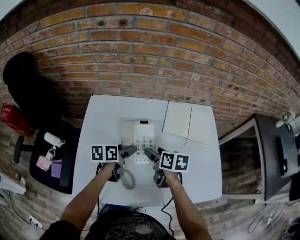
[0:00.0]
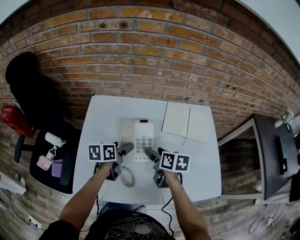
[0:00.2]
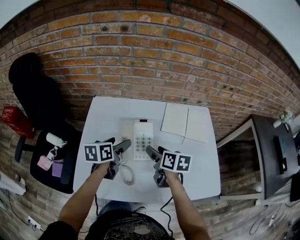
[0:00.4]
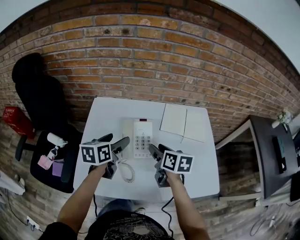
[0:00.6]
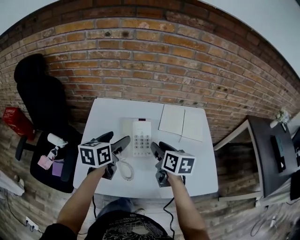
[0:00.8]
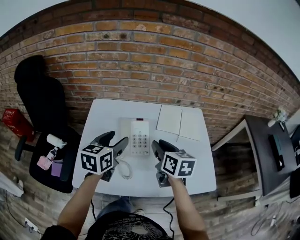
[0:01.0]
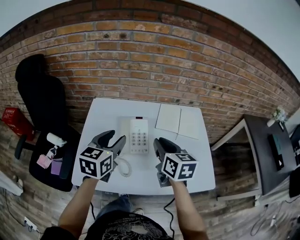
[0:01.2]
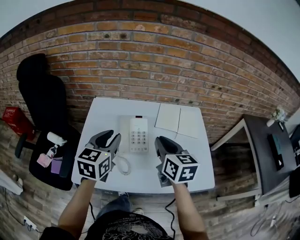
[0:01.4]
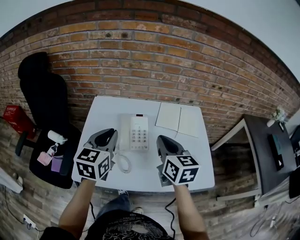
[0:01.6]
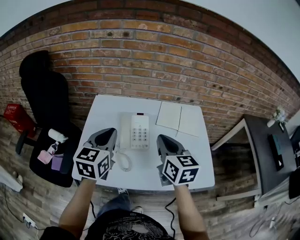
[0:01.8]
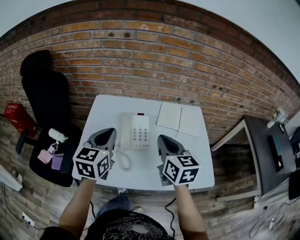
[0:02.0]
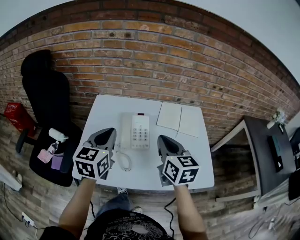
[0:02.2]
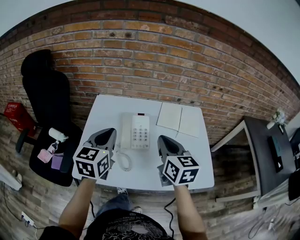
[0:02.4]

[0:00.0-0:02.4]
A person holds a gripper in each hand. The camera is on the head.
0:00.0 to 0:01.2: The grippers both shift upward and backward by roughly 20 cm. The right gripper swivels some 30 degrees, and closes; the left gripper turns by some 40 degrees, and closes.
0:01.2 to 0:02.4: The left gripper closes its fingers.

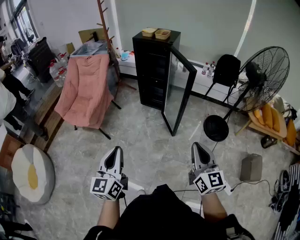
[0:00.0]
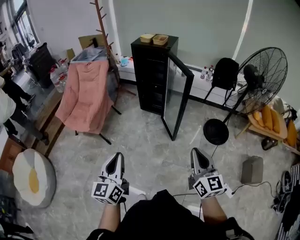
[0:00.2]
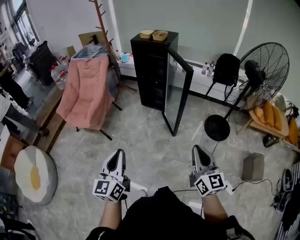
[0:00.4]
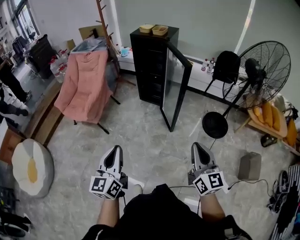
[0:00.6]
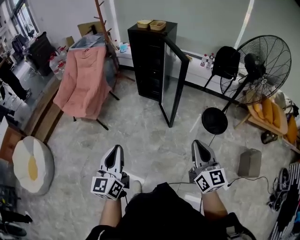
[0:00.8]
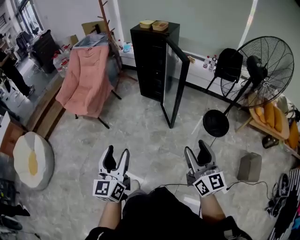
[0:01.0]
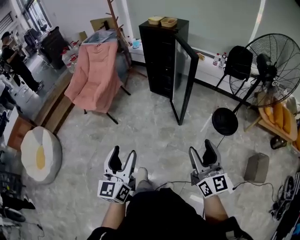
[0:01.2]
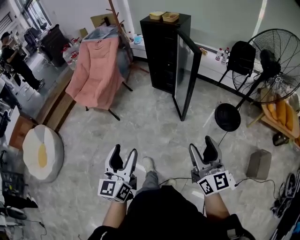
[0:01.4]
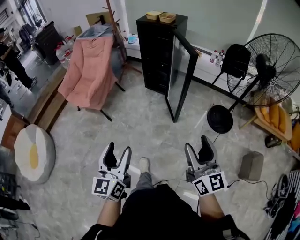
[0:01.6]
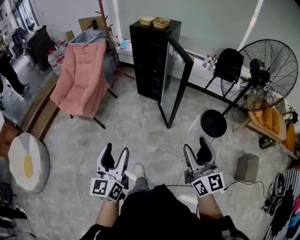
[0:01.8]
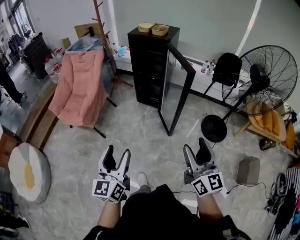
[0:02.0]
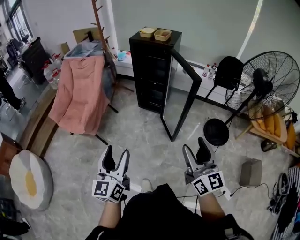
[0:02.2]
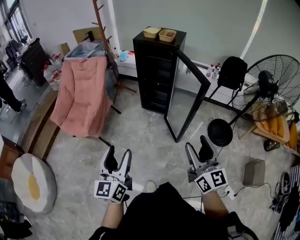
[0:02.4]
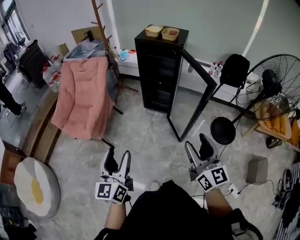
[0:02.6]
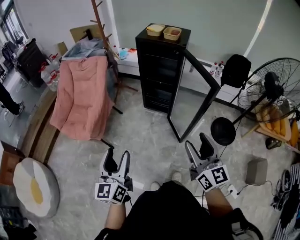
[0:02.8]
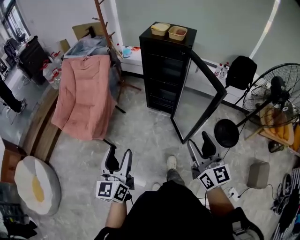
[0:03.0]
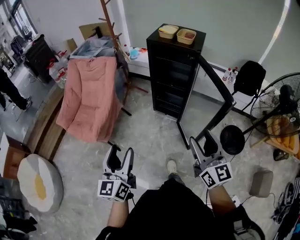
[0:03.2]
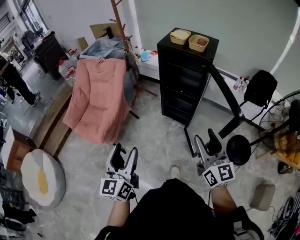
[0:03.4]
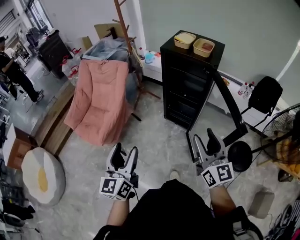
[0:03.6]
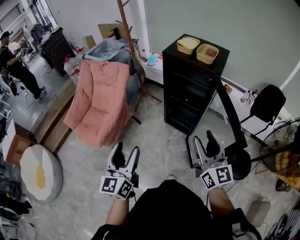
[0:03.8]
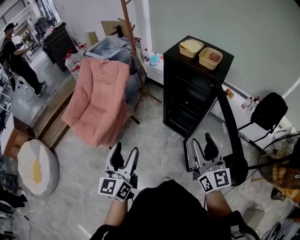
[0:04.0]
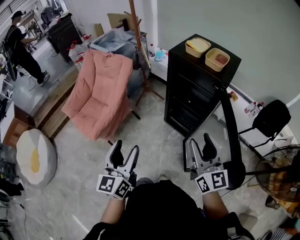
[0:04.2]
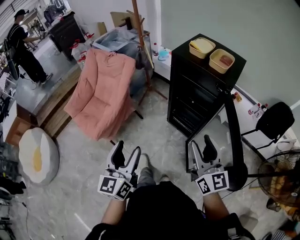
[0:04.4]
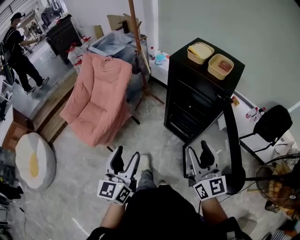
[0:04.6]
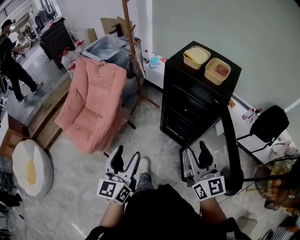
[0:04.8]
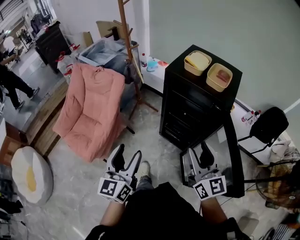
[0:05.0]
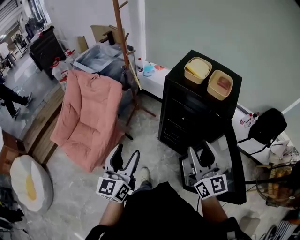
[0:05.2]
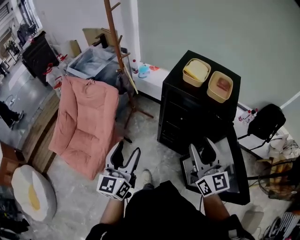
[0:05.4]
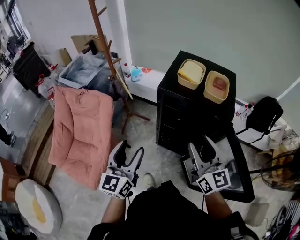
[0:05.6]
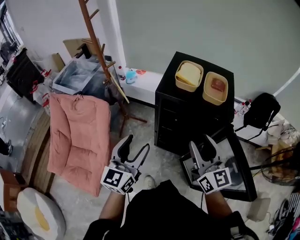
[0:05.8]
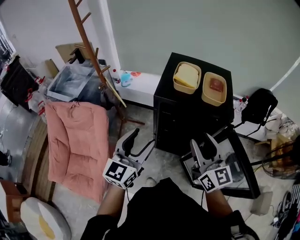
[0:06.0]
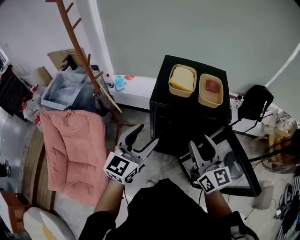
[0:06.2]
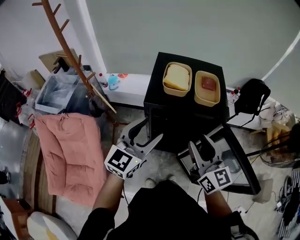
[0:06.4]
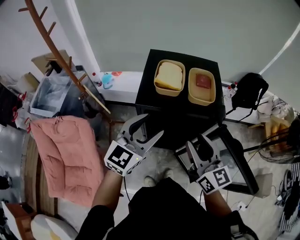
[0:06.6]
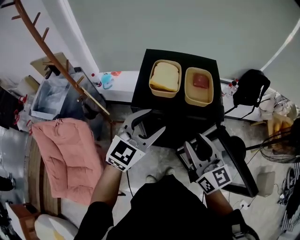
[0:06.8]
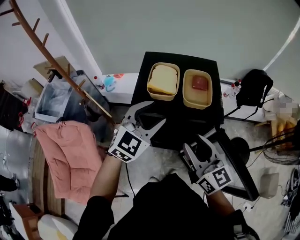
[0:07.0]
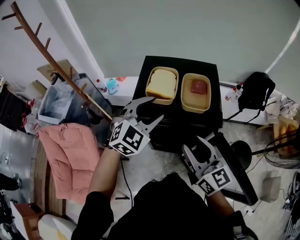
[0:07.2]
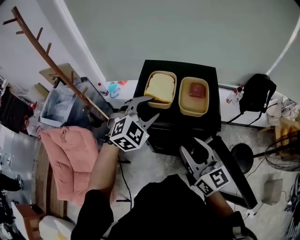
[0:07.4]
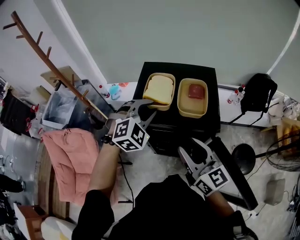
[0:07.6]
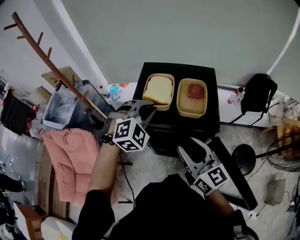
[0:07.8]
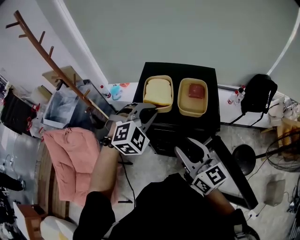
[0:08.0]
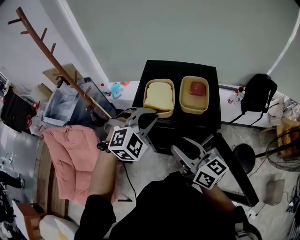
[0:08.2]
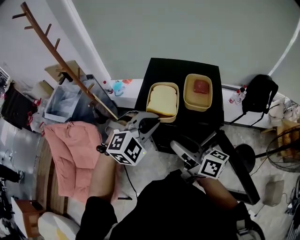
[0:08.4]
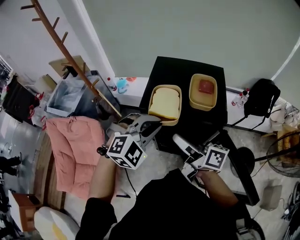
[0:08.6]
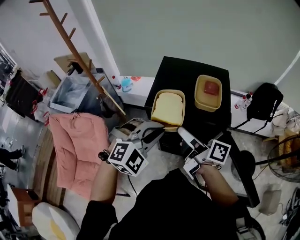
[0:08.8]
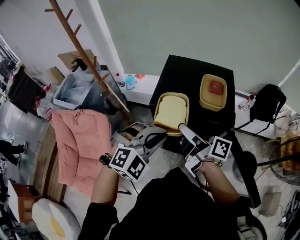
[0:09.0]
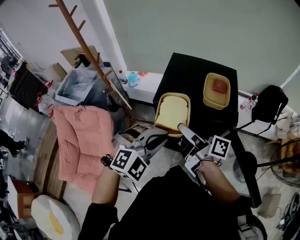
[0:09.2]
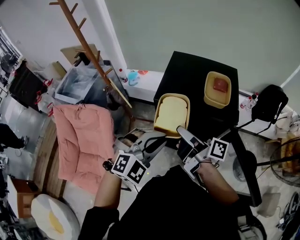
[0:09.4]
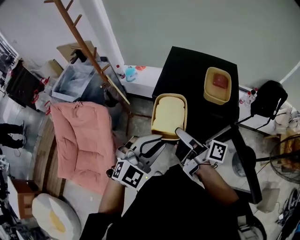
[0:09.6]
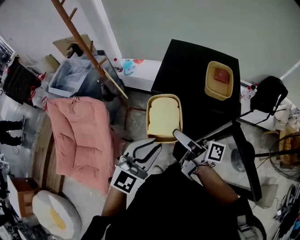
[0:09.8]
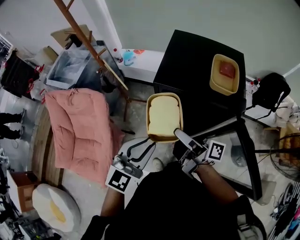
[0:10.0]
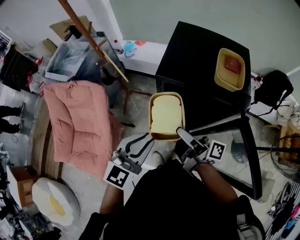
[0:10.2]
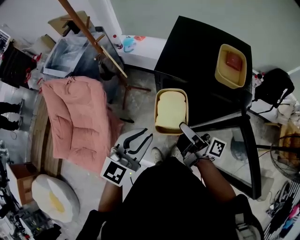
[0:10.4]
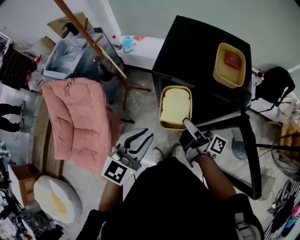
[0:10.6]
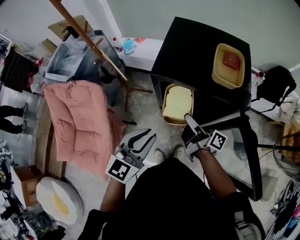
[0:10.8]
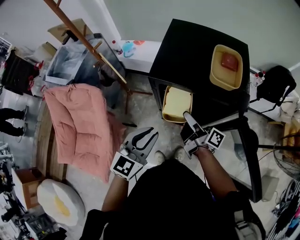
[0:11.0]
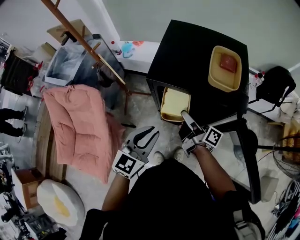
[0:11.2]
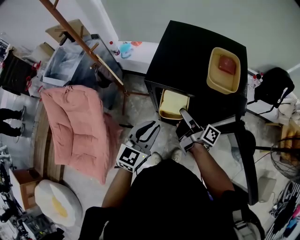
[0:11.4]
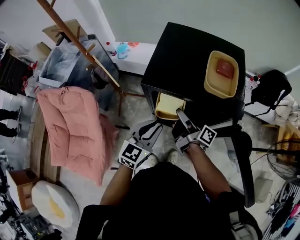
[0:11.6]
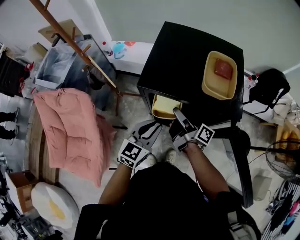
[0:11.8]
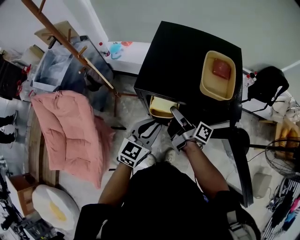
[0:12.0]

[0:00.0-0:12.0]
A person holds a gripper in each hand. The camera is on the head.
0:00.0 to 0:01.6: The right gripper ends up roughly 5 cm from where it was, and opens; the left gripper travels backward and to the right by roughly 10 cm, and opens up.
0:01.6 to 0:03.0: Both grippers move forward and to the left, approximately 30 cm.
0:03.0 to 0:04.4: The right gripper is displaced forward by some 30 cm, while the left gripper is displaced forward and to the right by roughly 20 cm.
0:04.4 to 0:06.0: The right gripper moves about 25 cm, while the left gripper ends up roughly 35 cm from where it was, and rotates roughly 40 degrees.
0:06.0 to 0:07.6: The right gripper moves forward, roughly 5 cm. Meanwhile the left gripper heads forward and to the right, covering some 25 cm, rotates around the line of its fingers by roughly 60 degrees, clockwise from behind, and closes up.
0:07.6 to 0:09.0: The left gripper heads backward, covering about 15 cm, while the right gripper moves to the left, roughly 10 cm, twists approximately 50 degrees clockwise, seen from behind, and opens its fingers.
0:09.0 to 0:10.4: The right gripper travels downward and backward by roughly 10 cm. Meanwhile the left gripper is displaced to the left, backward and downward by roughly 10 cm, and rolls counterclockwise, seen from behind, by approximately 50 degrees.
0:10.4 to 0:12.0: The right gripper goes some 15 cm forward and downward. The left gripper moves downward, forward and to the right, roughly 15 cm.

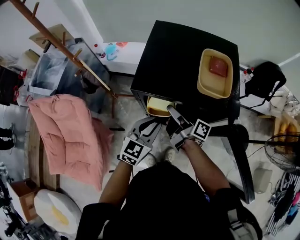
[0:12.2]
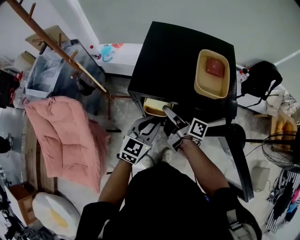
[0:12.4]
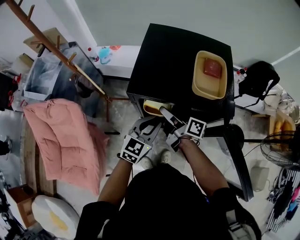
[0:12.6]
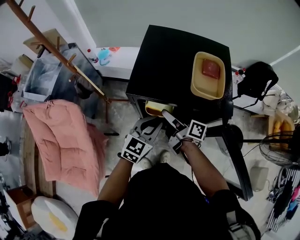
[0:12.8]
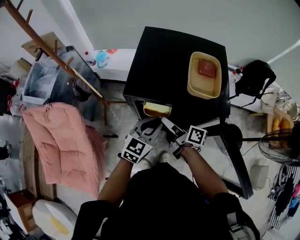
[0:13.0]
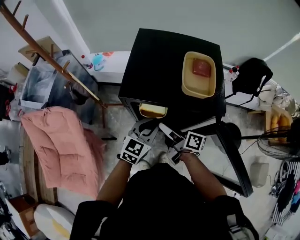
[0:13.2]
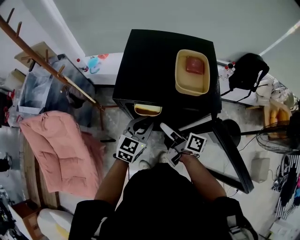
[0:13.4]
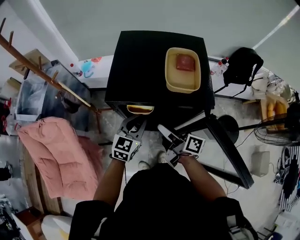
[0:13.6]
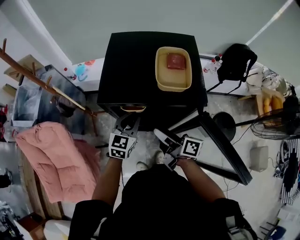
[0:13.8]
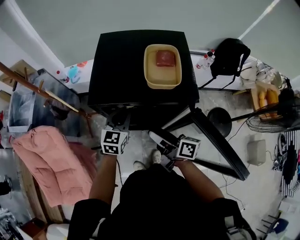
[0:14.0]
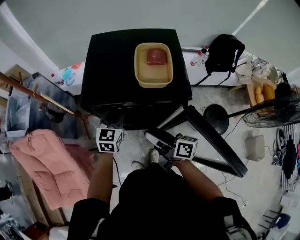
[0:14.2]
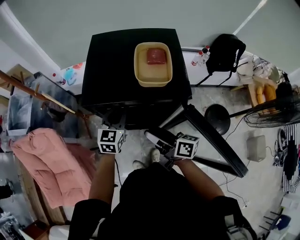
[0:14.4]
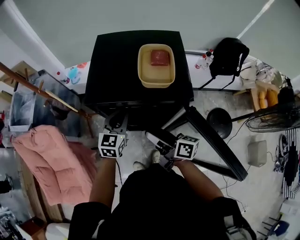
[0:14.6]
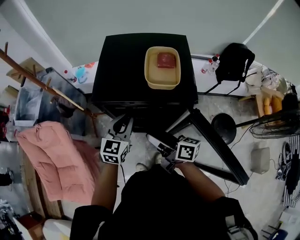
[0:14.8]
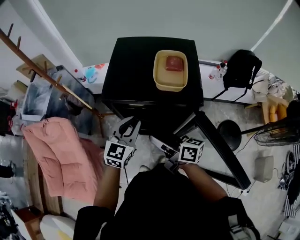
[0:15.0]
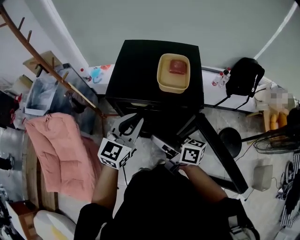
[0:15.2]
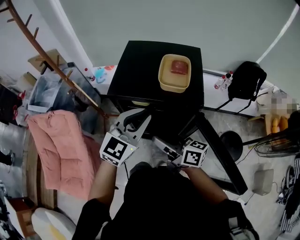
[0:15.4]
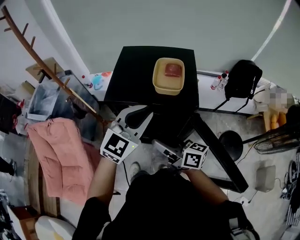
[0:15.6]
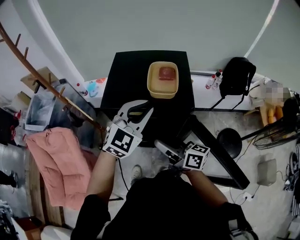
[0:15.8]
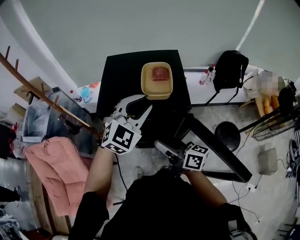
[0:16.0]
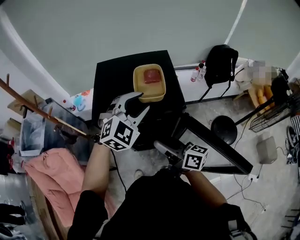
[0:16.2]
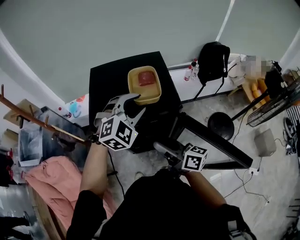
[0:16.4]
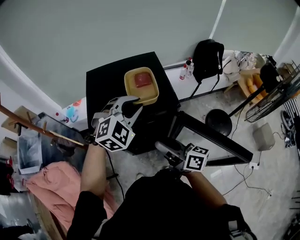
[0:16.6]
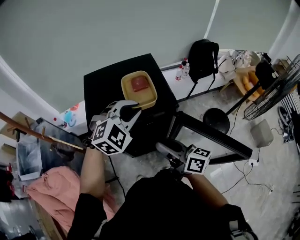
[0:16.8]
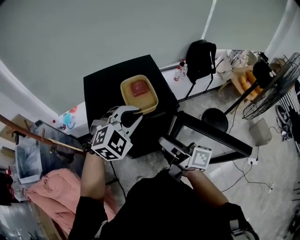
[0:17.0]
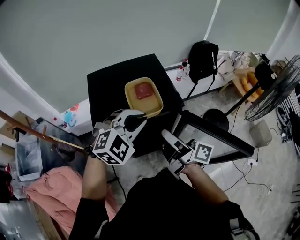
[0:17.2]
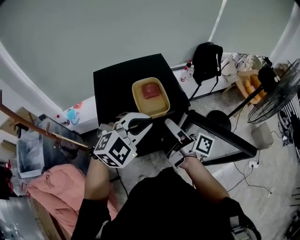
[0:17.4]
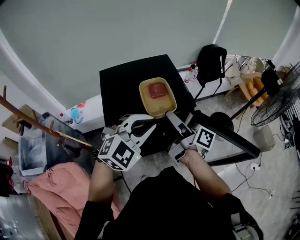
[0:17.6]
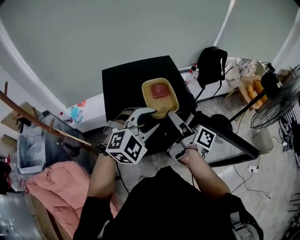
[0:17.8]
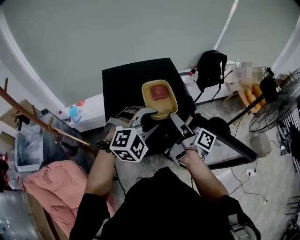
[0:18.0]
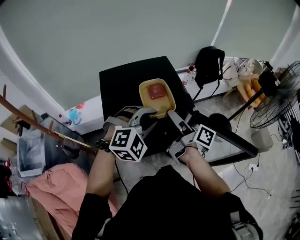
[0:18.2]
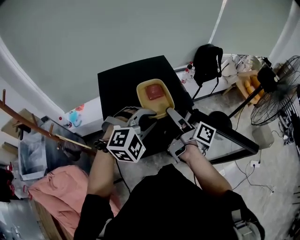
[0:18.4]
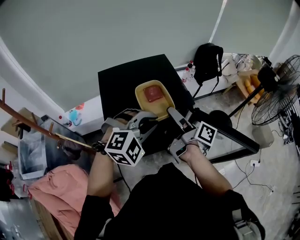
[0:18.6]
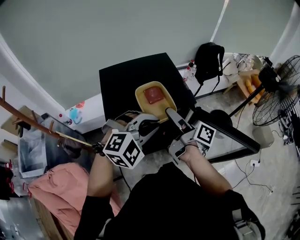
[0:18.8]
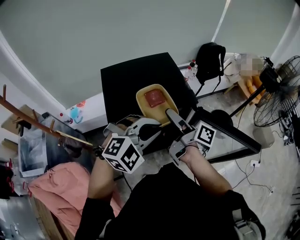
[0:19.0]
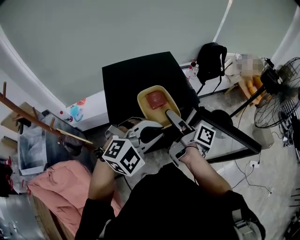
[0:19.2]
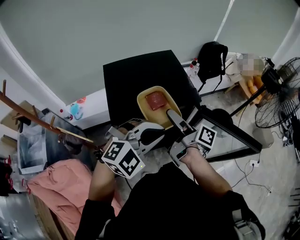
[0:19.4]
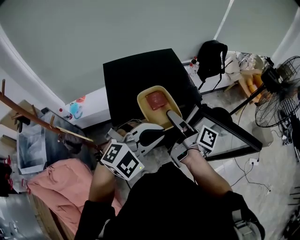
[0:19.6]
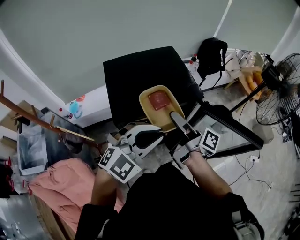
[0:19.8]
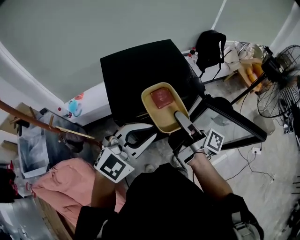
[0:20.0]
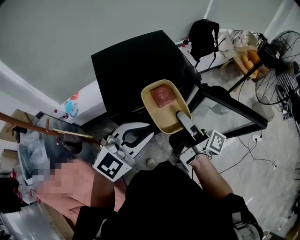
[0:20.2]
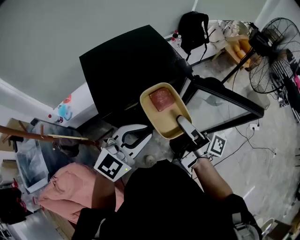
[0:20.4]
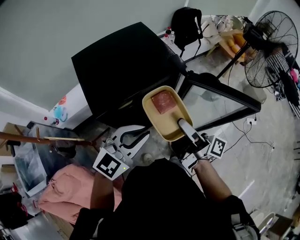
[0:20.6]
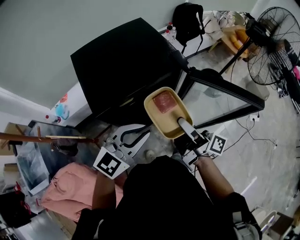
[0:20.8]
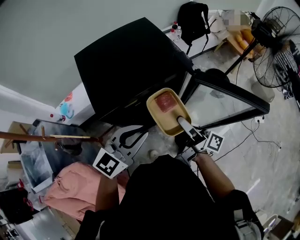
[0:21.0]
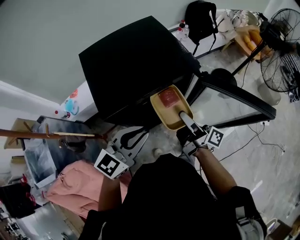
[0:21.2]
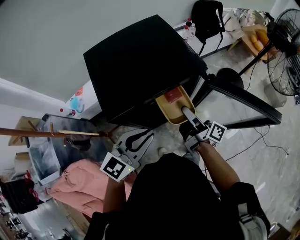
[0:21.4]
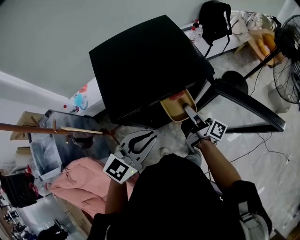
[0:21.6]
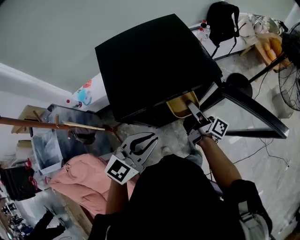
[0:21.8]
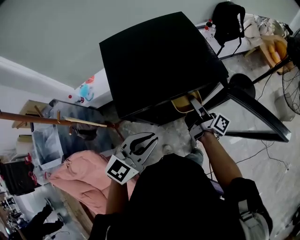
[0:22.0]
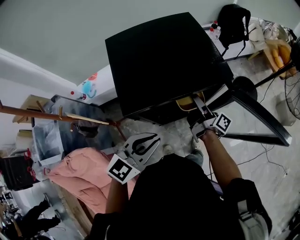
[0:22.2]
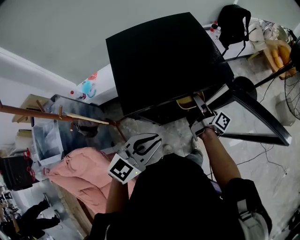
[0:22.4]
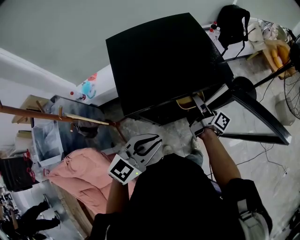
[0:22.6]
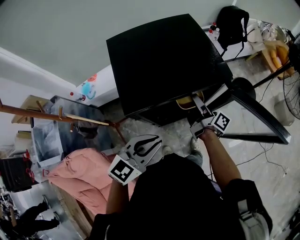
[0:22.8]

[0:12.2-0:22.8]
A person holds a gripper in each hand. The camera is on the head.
0:12.2 to 0:13.8: The left gripper goes approximately 5 cm forward. The right gripper moves backward and to the right, about 10 cm.
0:13.8 to 0:15.2: The right gripper is displaced upward by some 5 cm, and swivels approximately 20 degrees; the left gripper shifts about 15 cm upward.
0:15.2 to 0:16.8: The right gripper moves about 5 cm, and turns by some 30 degrees. Meanwhile the left gripper shifts by about 10 cm, twists roughly 50 degrees clockwise, seen from behind, and opens, then closes again.
0:16.8 to 0:18.2: The right gripper goes approximately 10 cm forward, rotates some 40 degrees, and opens its fingers.
0:18.2 to 0:19.8: The right gripper ends up roughly 5 cm from where it was, and closes its fingers. Meanwhile the left gripper travels backward by about 10 cm, and swivels roughly 30 degrees.
0:19.8 to 0:21.2: The right gripper shifts roughly 15 cm downward and to the right. The left gripper moves downward, about 10 cm, and rotates about 40 degrees.
0:21.2 to 0:22.8: The right gripper moves forward and downward, approximately 10 cm.
